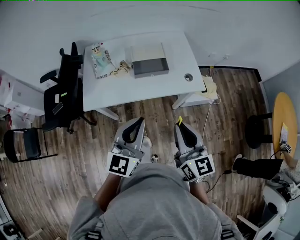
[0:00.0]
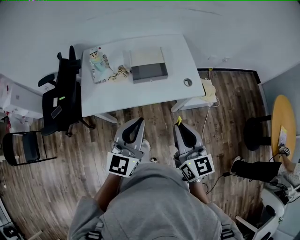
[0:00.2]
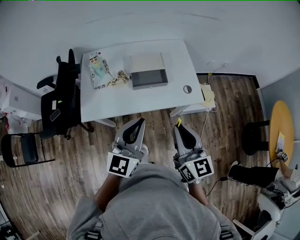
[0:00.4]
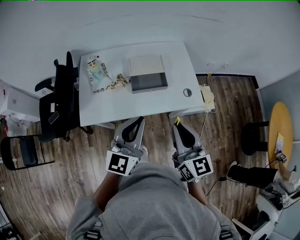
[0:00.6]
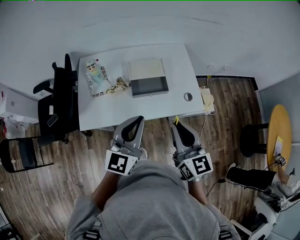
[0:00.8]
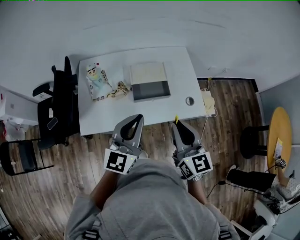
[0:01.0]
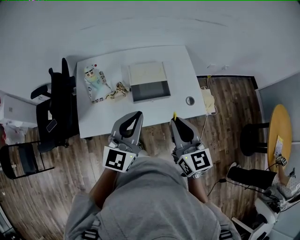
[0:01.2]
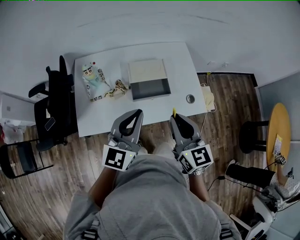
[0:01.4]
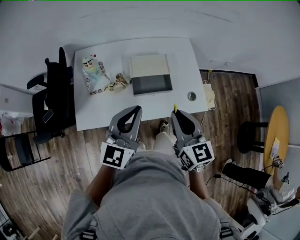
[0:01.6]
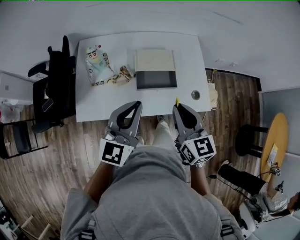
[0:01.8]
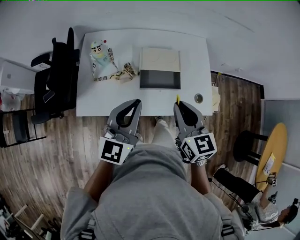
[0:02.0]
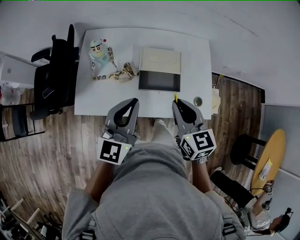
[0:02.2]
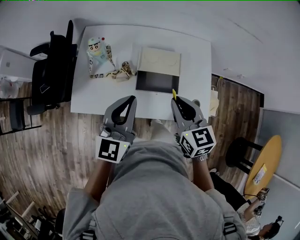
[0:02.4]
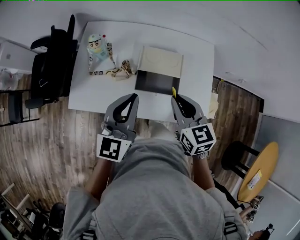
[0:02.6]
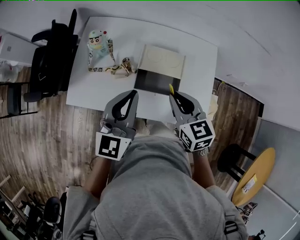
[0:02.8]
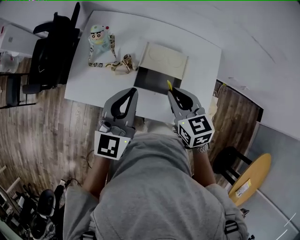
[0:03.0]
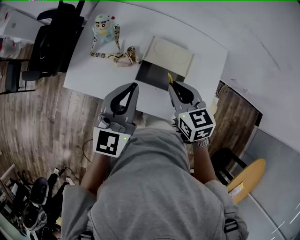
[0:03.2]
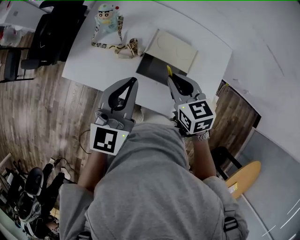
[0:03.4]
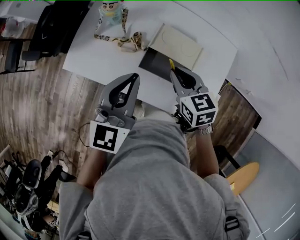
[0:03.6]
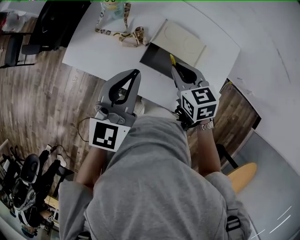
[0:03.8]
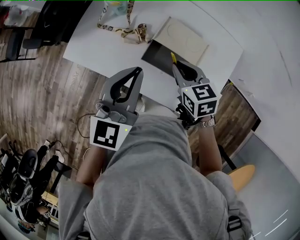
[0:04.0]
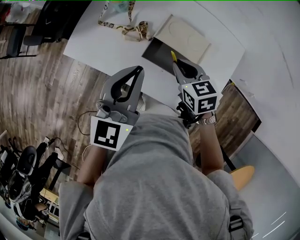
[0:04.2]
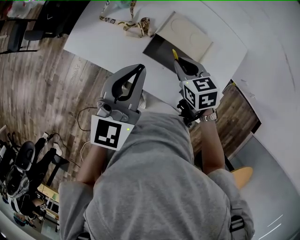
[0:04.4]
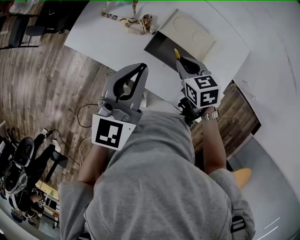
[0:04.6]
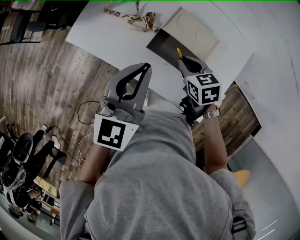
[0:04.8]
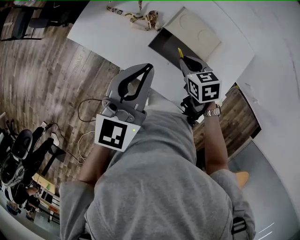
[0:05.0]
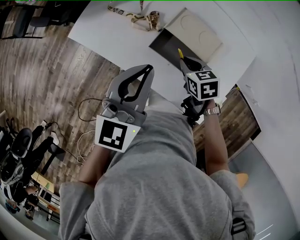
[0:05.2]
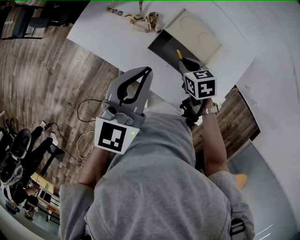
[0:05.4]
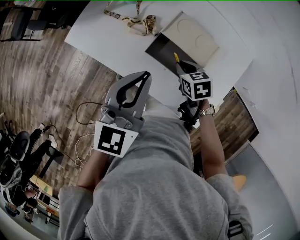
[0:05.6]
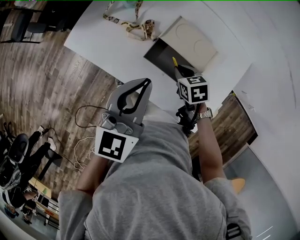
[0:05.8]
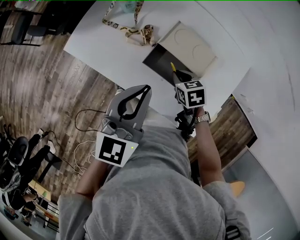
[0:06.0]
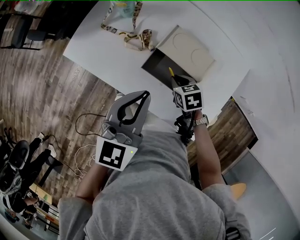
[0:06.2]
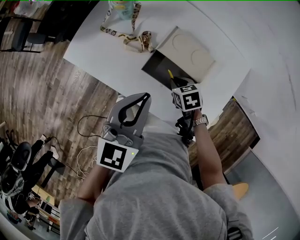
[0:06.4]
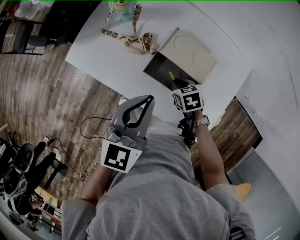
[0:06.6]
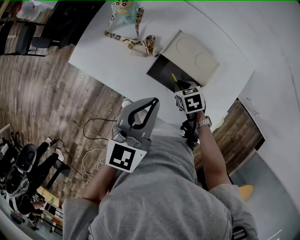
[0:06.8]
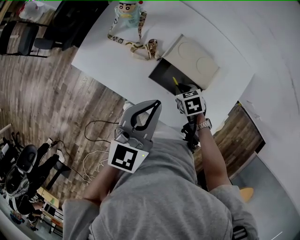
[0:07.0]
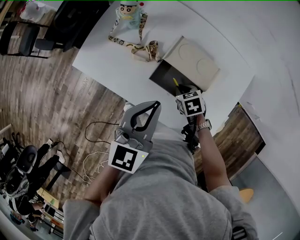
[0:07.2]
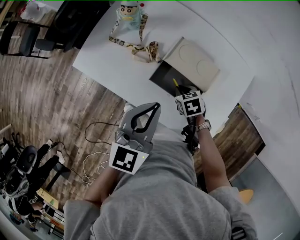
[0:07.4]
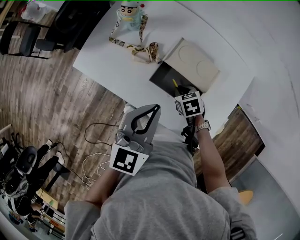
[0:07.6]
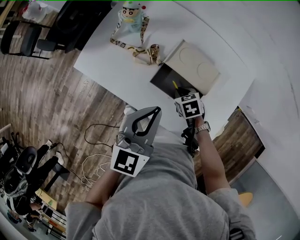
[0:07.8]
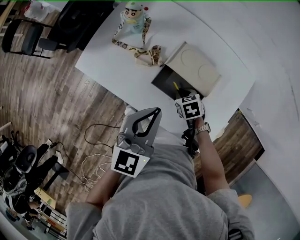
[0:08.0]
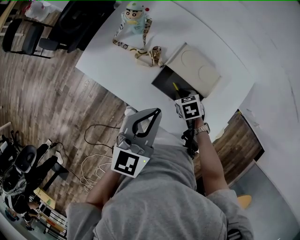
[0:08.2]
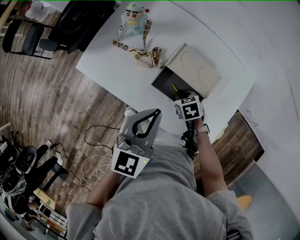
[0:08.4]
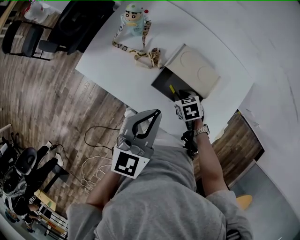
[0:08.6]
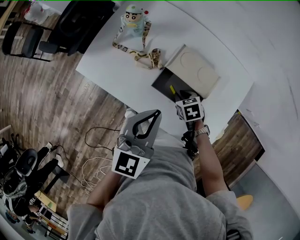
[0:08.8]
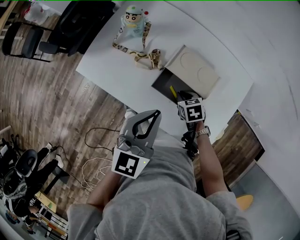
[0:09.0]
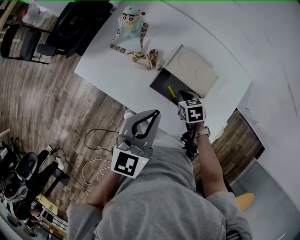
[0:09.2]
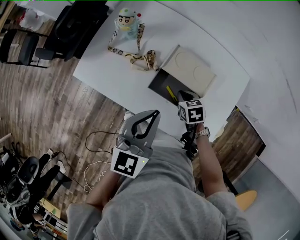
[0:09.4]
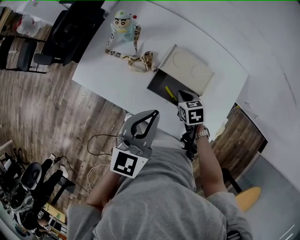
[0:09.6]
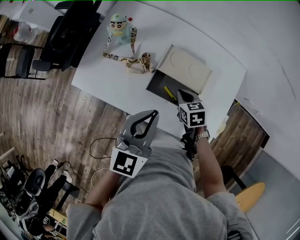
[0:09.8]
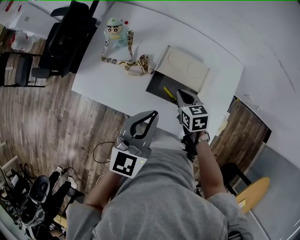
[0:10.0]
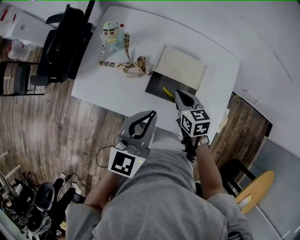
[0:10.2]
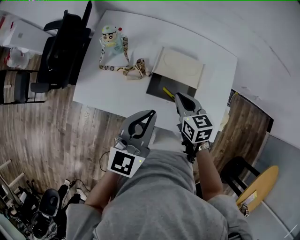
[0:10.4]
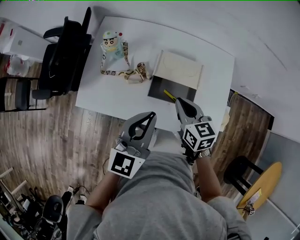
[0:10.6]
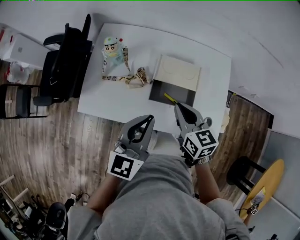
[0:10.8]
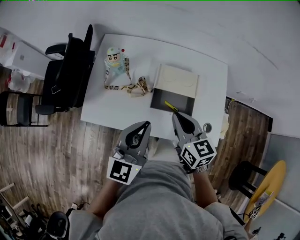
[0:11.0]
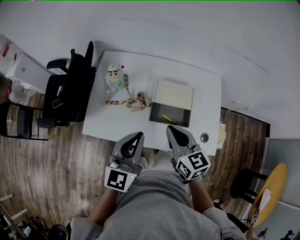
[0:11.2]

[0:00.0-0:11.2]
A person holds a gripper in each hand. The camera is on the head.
0:00.0 to 0:01.6: The grippers both shift forward by about 25 cm.
0:01.6 to 0:03.2: The left gripper moves approximately 10 cm, and swivels some 30 degrees; the right gripper changes place by some 20 cm, and turns by about 40 degrees.
0:03.2 to 0:04.8: The right gripper moves downward, roughly 15 cm, and rotates about 20 degrees.
0:04.8 to 0:06.4: The right gripper moves downward, roughly 10 cm.
0:06.4 to 0:09.6: The grippers stay close to where they were, moving slightly.
0:09.6 to 0:11.2: The left gripper is displaced to the left by some 10 cm. The right gripper goes some 25 cm upward, and points its fingers some 40 degrees further upward.

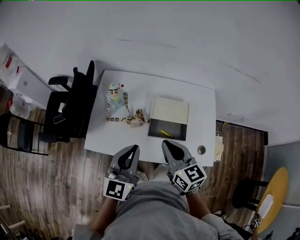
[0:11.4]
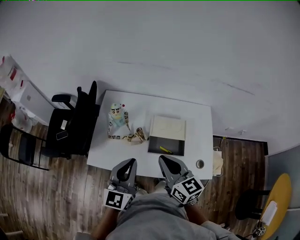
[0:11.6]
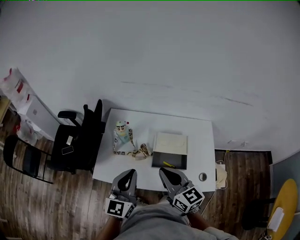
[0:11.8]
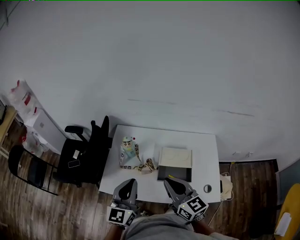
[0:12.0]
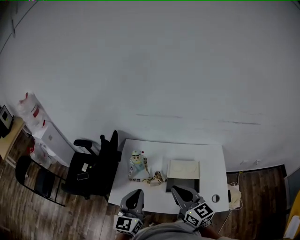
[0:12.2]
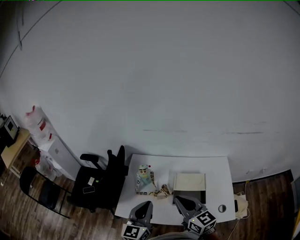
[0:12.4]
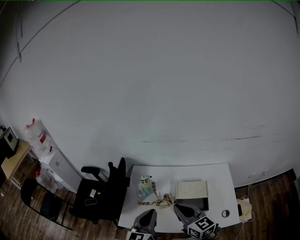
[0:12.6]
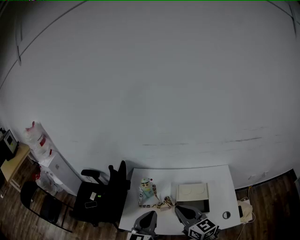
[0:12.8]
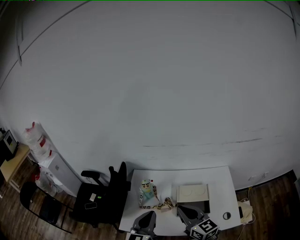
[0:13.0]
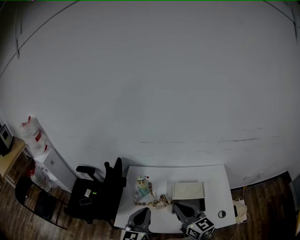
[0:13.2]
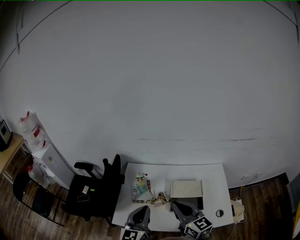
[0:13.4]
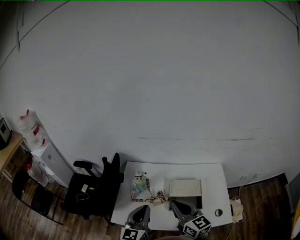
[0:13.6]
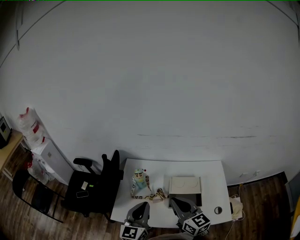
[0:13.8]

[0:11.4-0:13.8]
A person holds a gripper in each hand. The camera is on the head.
0:11.4 to 0:12.6: The right gripper shifts about 10 cm upward and to the left. Meanwhile the left gripper ends up approximately 5 cm from where it was.
0:12.6 to 0:13.8: The grippers make only small movements.

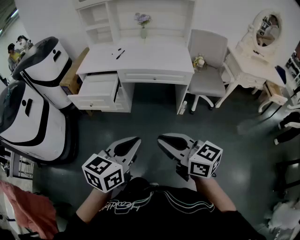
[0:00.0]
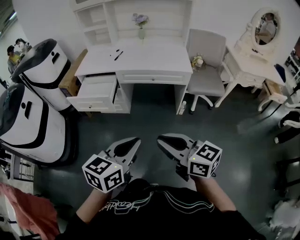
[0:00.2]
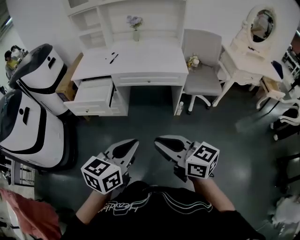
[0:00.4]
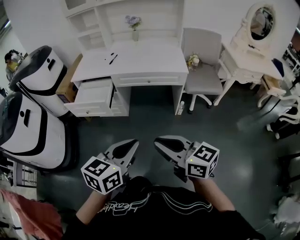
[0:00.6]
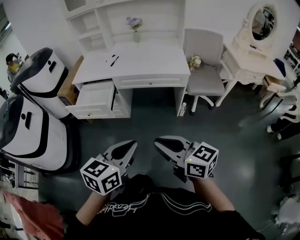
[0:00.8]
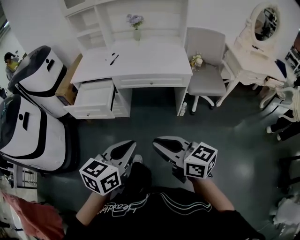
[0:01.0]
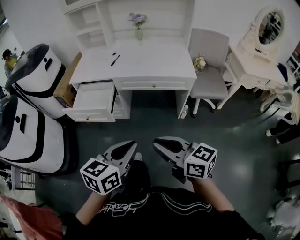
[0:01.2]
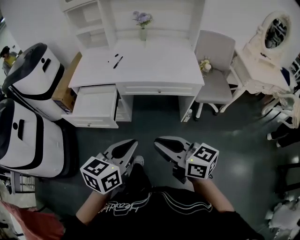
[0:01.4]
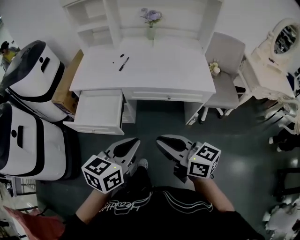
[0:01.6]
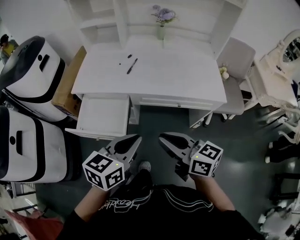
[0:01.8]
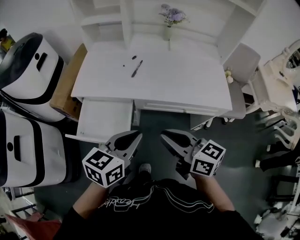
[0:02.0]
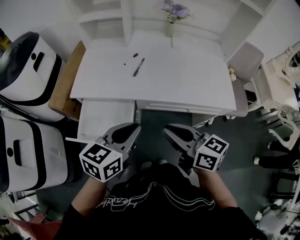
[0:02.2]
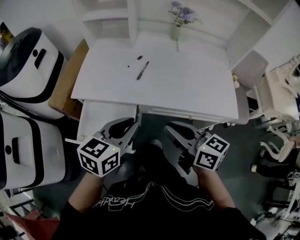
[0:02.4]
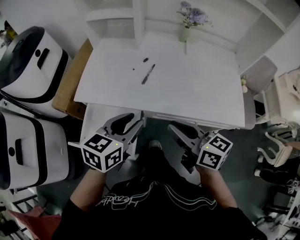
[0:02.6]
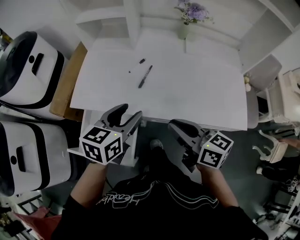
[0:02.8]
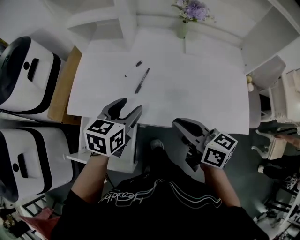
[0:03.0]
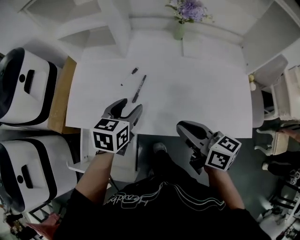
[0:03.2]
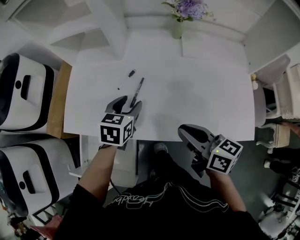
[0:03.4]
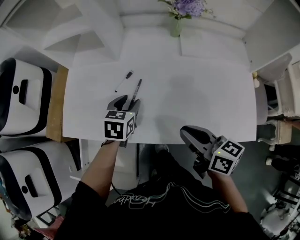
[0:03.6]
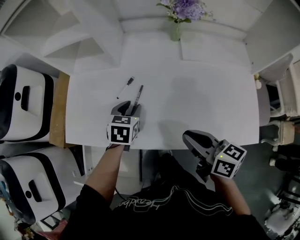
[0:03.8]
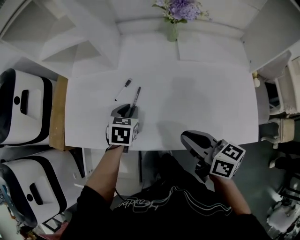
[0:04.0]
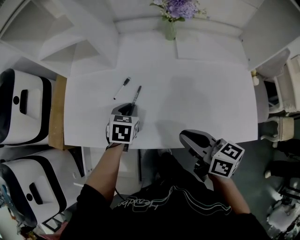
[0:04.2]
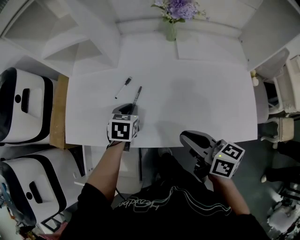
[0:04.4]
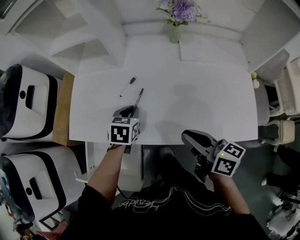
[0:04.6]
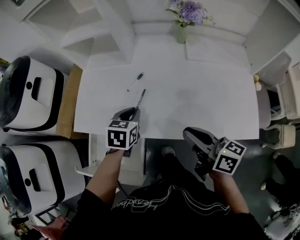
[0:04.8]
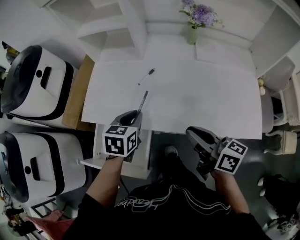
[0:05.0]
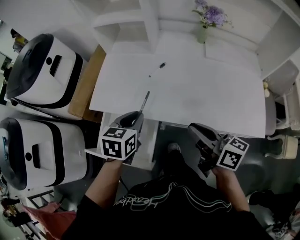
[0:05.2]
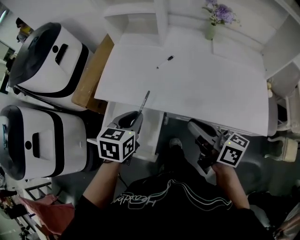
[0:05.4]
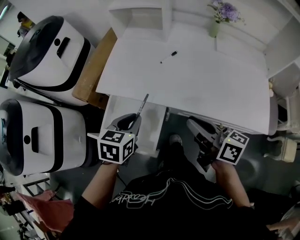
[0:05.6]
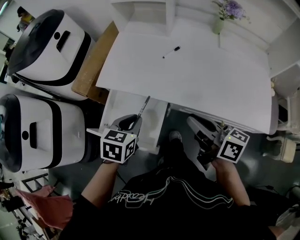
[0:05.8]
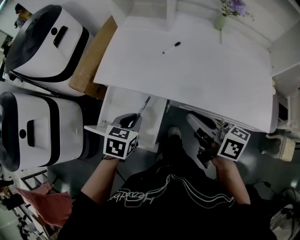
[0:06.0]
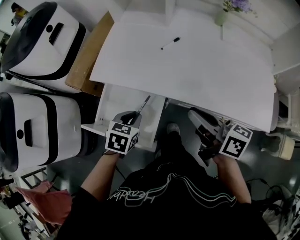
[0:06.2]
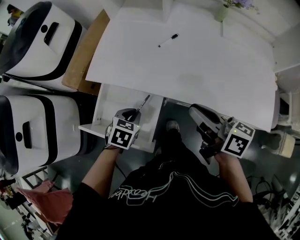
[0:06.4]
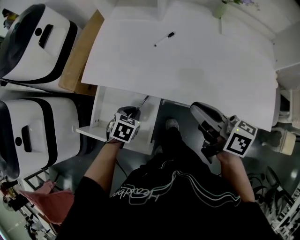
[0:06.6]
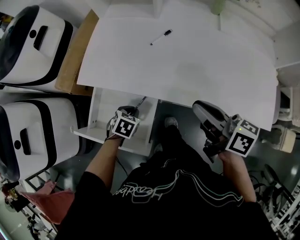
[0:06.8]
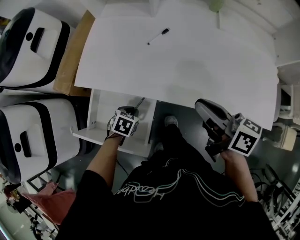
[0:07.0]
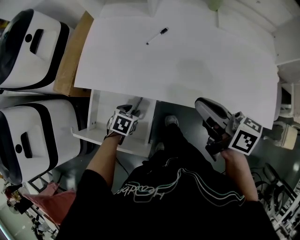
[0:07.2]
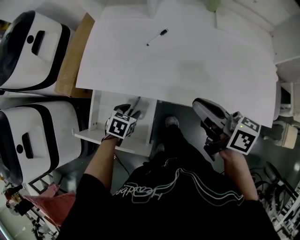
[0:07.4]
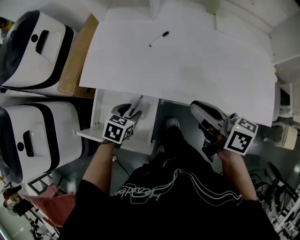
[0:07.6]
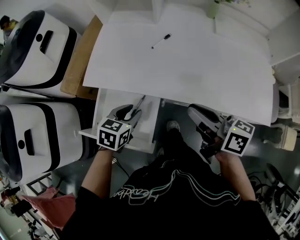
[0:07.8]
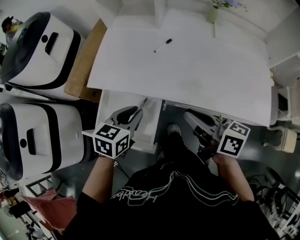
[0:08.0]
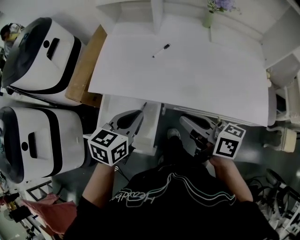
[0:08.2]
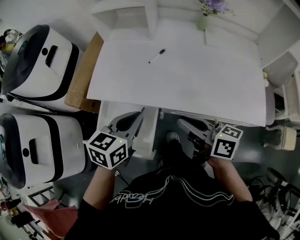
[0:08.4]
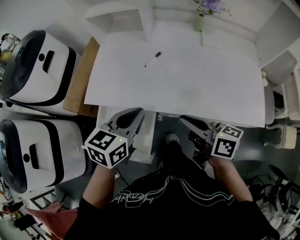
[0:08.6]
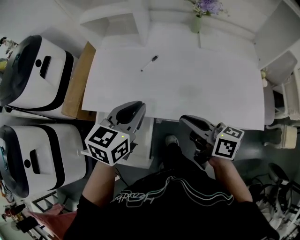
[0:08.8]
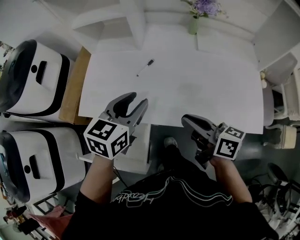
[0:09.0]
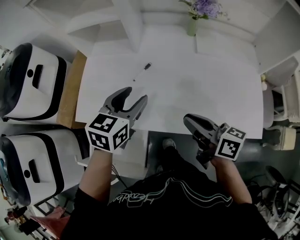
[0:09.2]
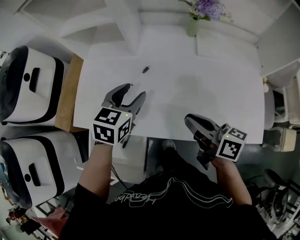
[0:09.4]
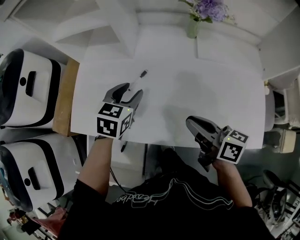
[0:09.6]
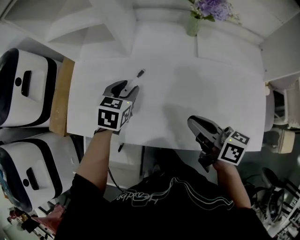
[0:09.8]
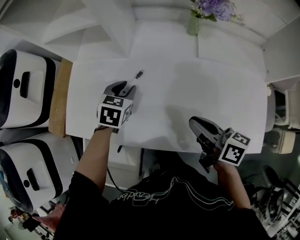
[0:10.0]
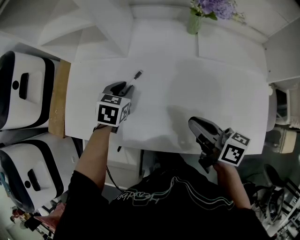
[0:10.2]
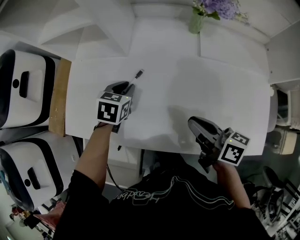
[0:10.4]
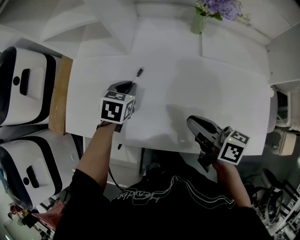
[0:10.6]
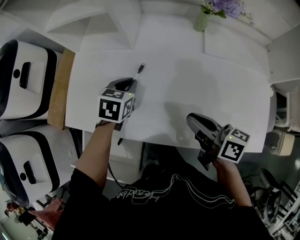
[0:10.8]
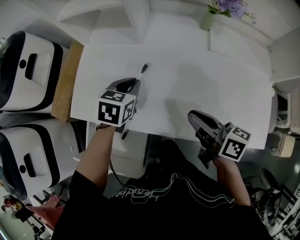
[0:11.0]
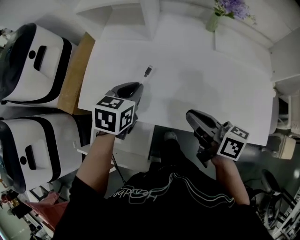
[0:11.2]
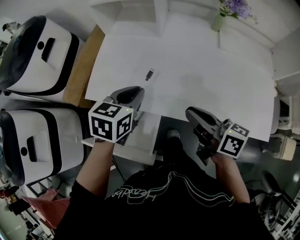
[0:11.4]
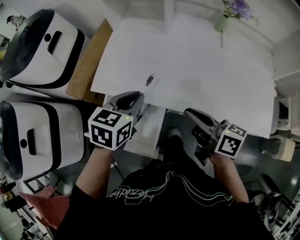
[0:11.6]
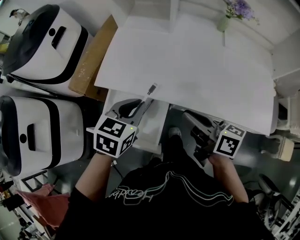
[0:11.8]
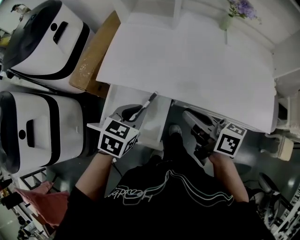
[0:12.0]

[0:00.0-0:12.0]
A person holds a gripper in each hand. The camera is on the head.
0:00.0 to 0:01.6: Both grippers travel together forward, some 30 cm.
0:01.6 to 0:03.0: Both grippers are carried forward, about 40 cm. The left gripper opens its fingers.
0:03.0 to 0:04.4: The left gripper travels downward and forward by some 20 cm, turns by roughly 20 degrees, and closes; the right gripper moves to the right, approximately 5 cm.
0:04.4 to 0:06.0: The left gripper goes approximately 30 cm backward and to the left, while the right gripper heads to the left and backward, covering roughly 20 cm.
0:06.0 to 0:07.6: The left gripper shifts about 10 cm downward, and opens.
0:07.6 to 0:09.0: The left gripper travels upward, to the right and forward by about 30 cm, points its fingers some 30 degrees further upward, and closes, then reopens.
0:09.0 to 0:10.4: The left gripper moves forward and downward, roughly 25 cm, and swivels about 30 degrees. The right gripper heads forward, to the right and downward, covering roughly 15 cm.
0:10.4 to 0:12.0: The right gripper shifts some 25 cm to the left and backward. Meanwhile the left gripper heads backward and to the left, covering roughly 35 cm.
